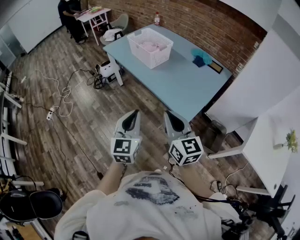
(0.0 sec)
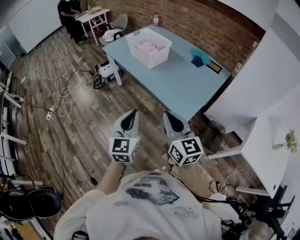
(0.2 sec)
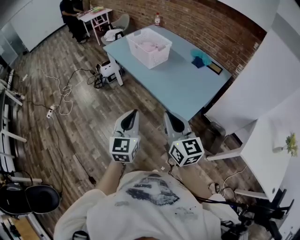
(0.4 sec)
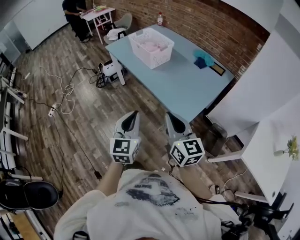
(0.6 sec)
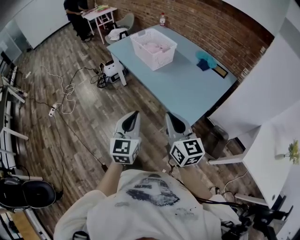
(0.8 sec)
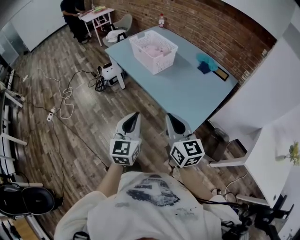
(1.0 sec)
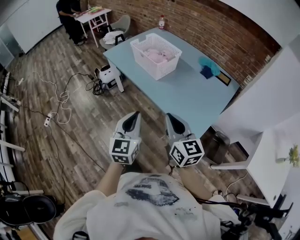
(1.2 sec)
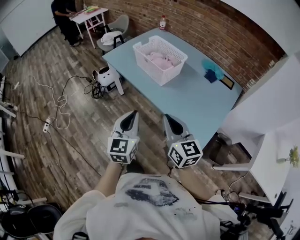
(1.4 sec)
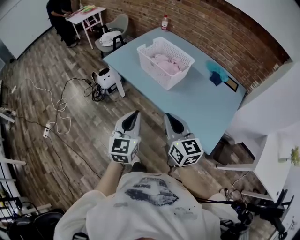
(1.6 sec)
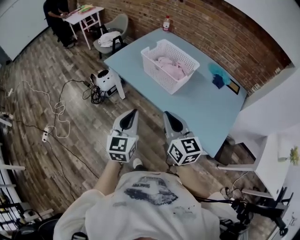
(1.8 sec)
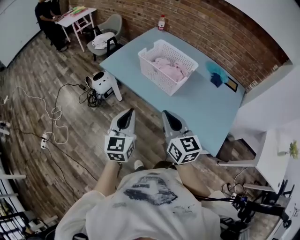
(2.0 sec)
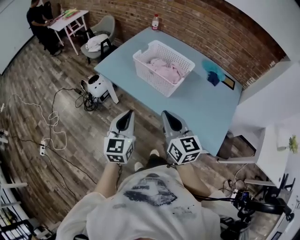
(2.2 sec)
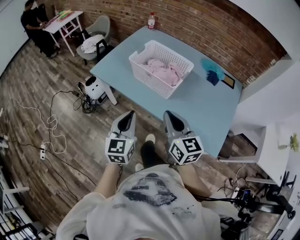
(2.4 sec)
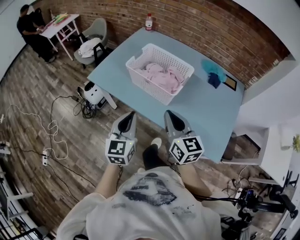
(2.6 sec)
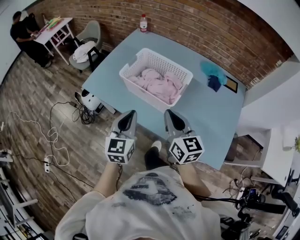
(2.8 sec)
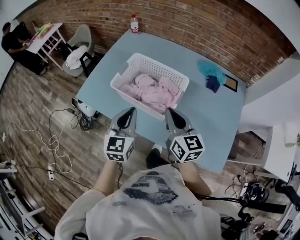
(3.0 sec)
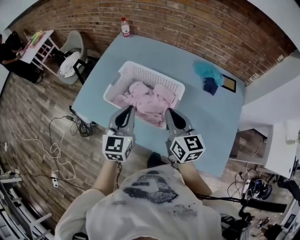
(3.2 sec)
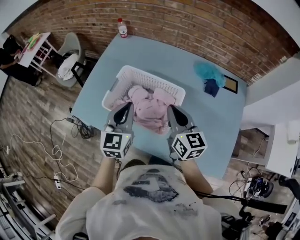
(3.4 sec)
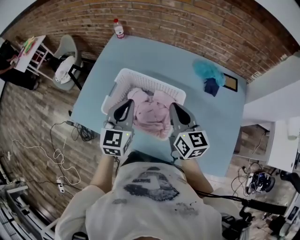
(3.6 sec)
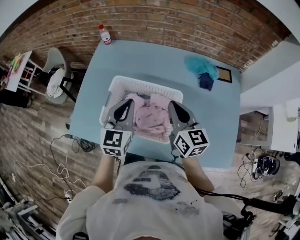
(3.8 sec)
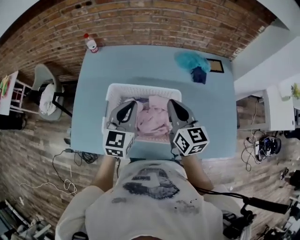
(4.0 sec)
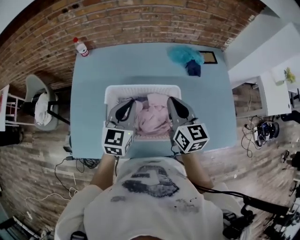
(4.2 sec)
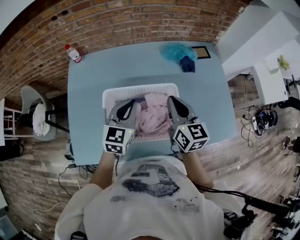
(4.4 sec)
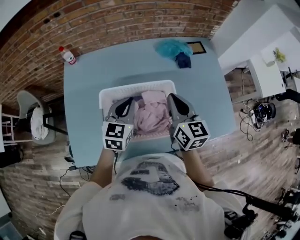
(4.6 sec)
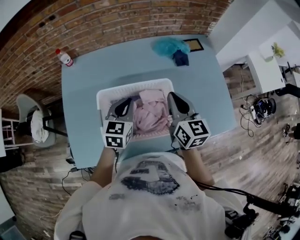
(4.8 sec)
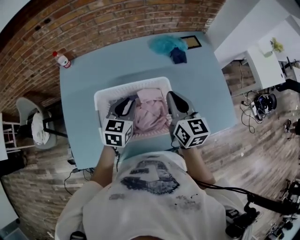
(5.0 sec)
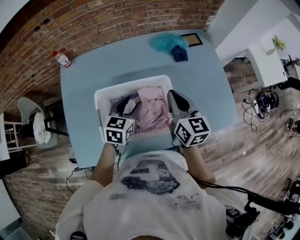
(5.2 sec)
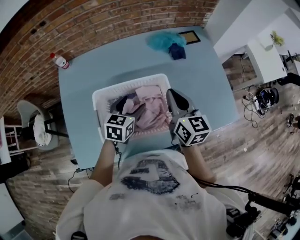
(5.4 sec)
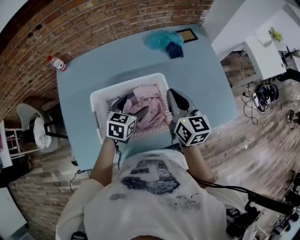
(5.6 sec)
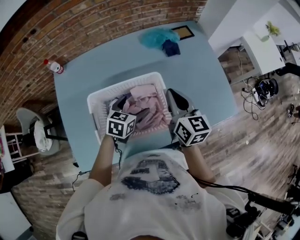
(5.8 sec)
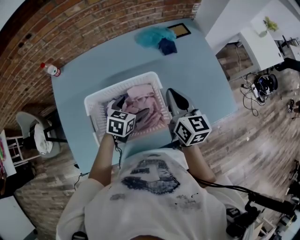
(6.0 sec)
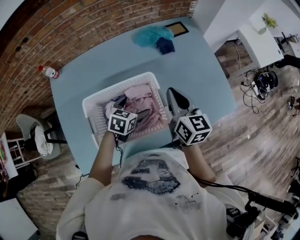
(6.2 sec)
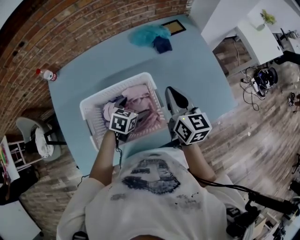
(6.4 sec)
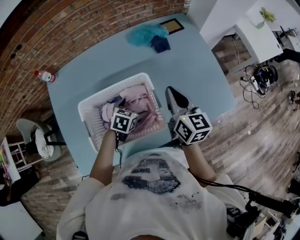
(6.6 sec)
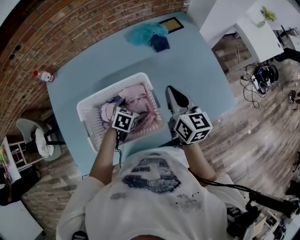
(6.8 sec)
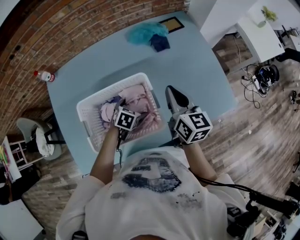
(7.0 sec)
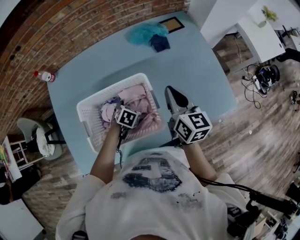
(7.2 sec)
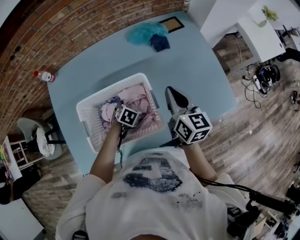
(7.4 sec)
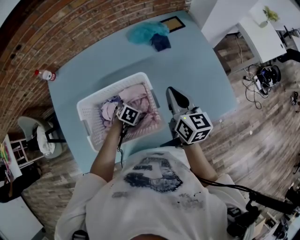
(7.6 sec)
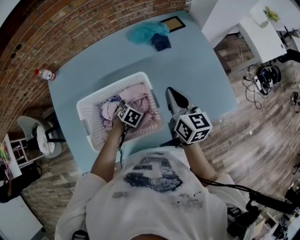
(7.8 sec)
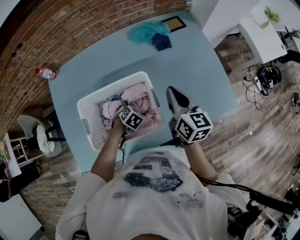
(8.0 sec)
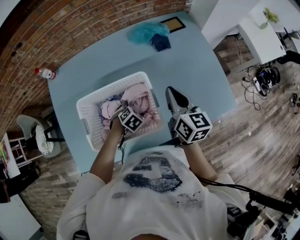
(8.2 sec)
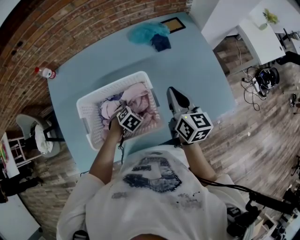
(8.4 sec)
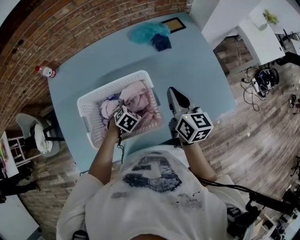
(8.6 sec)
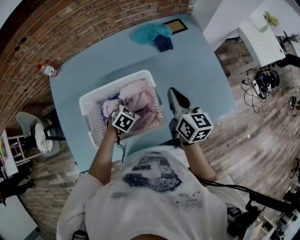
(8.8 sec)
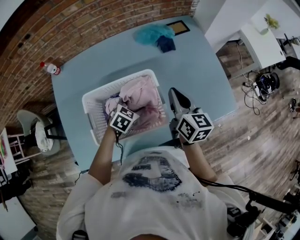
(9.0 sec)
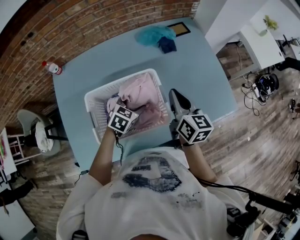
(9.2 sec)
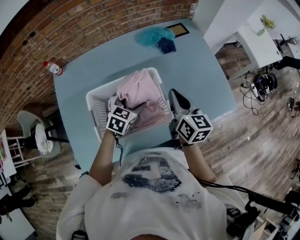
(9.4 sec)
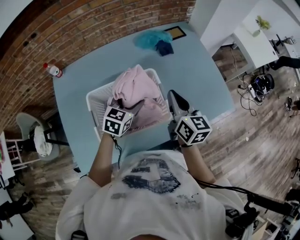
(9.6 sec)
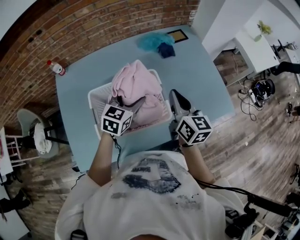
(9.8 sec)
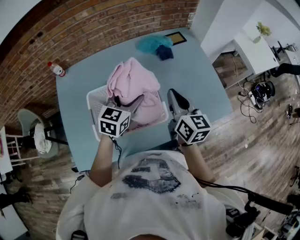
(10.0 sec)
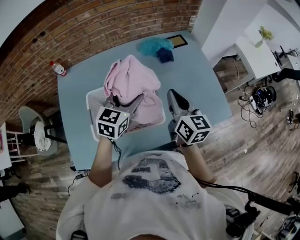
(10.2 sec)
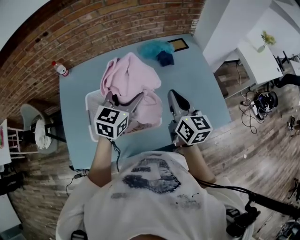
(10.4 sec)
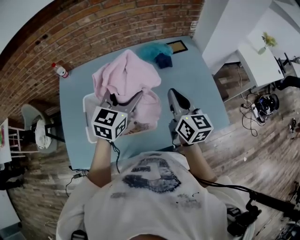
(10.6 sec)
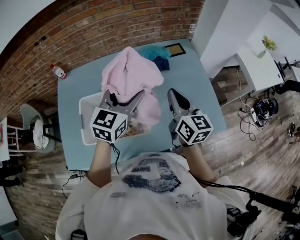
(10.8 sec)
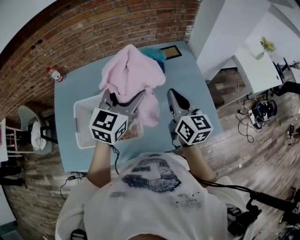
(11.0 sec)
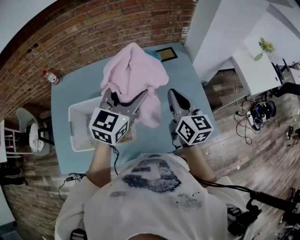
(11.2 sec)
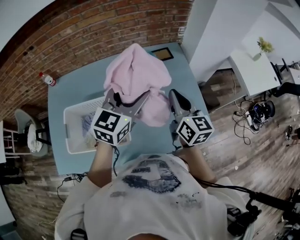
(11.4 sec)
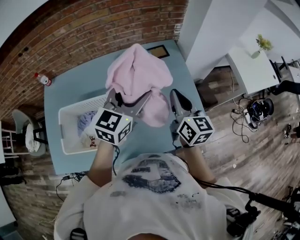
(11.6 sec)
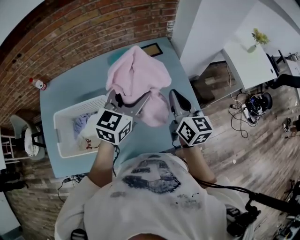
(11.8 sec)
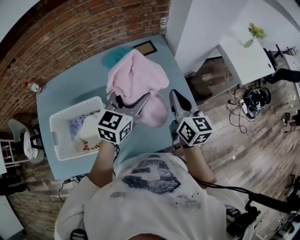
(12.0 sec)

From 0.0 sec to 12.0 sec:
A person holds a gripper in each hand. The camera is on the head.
From 0.0 sec to 1.6 sec: Both grippers move forward and to the left, roughly 30 cm.
From 1.6 sec to 3.0 sec: Both grippers travel together forward, roughly 35 cm.
From 3.0 sec to 4.4 sec: The right gripper shifts by some 15 cm, and turns by about 40 degrees. Meanwhile the left gripper changes place by approximately 25 cm, and swivels some 40 degrees.
From 4.4 sec to 6.0 sec: The right gripper is displaced to the right by about 10 cm; the left gripper moves downward and to the right, approximately 15 cm, turns by some 30 degrees, and opens.
From 6.0 sec to 7.6 sec: The right gripper shifts by roughly 5 cm, while the left gripper is displaced downward by roughly 10 cm, and rotates some 30 degrees.
From 7.6 sec to 9.0 sec: The left gripper heads upward, covering some 10 cm, and closes up.
From 9.0 sec to 10.4 sec: The right gripper shifts roughly 5 cm upward. Meanwhile the left gripper moves upward, some 20 cm, and tips its fingers upward by roughly 30 degrees.
From 10.4 sec to 12.0 sec: Both grippers travel together to the right and forward, some 25 cm.

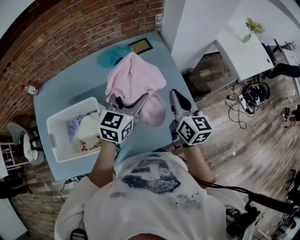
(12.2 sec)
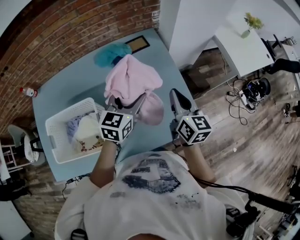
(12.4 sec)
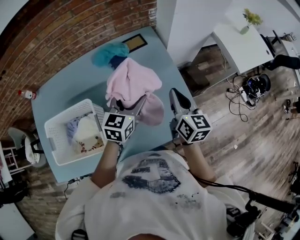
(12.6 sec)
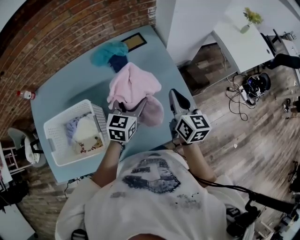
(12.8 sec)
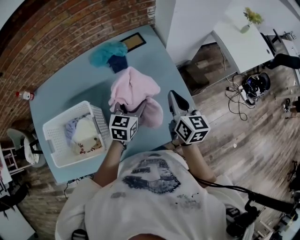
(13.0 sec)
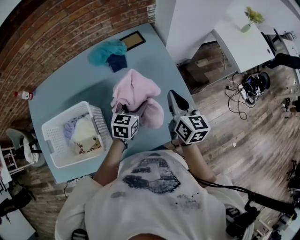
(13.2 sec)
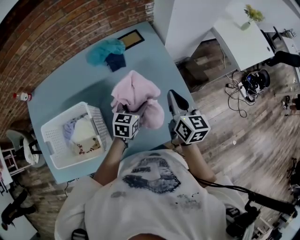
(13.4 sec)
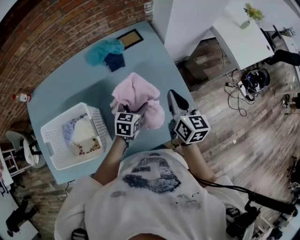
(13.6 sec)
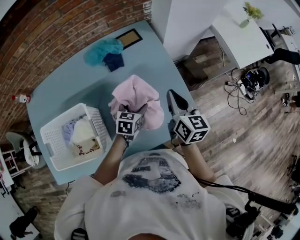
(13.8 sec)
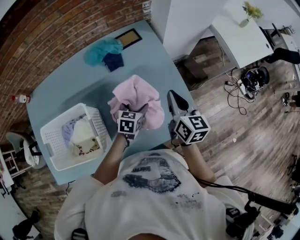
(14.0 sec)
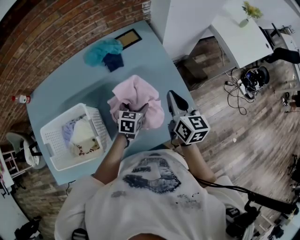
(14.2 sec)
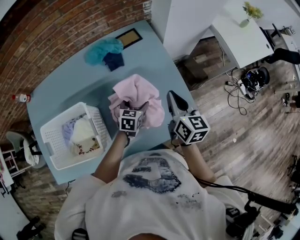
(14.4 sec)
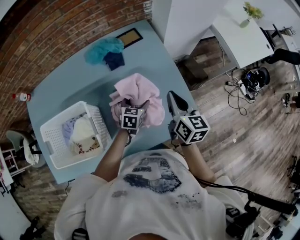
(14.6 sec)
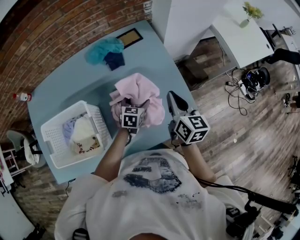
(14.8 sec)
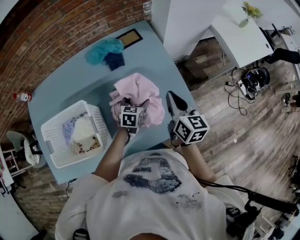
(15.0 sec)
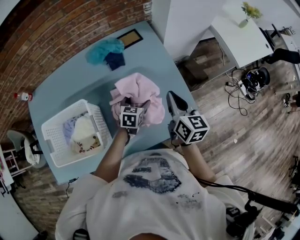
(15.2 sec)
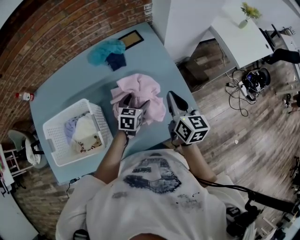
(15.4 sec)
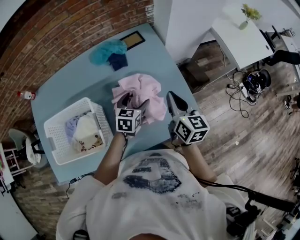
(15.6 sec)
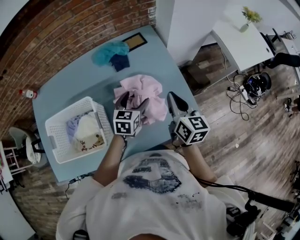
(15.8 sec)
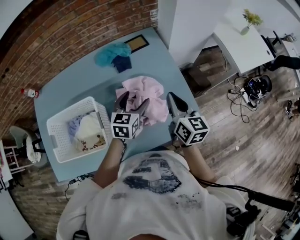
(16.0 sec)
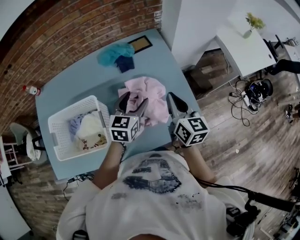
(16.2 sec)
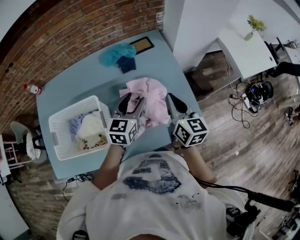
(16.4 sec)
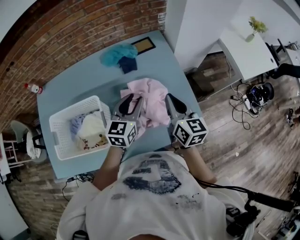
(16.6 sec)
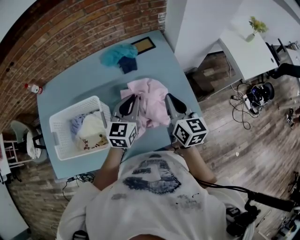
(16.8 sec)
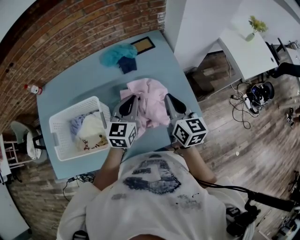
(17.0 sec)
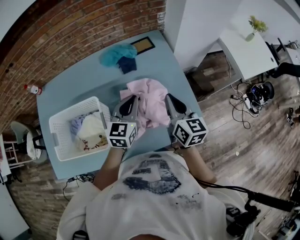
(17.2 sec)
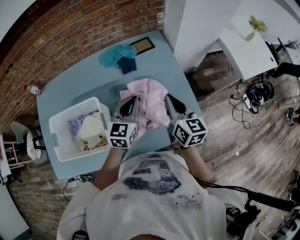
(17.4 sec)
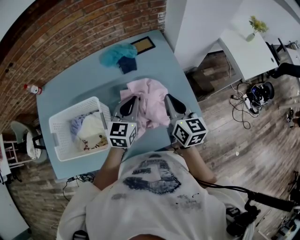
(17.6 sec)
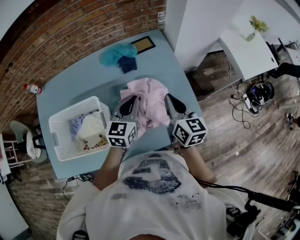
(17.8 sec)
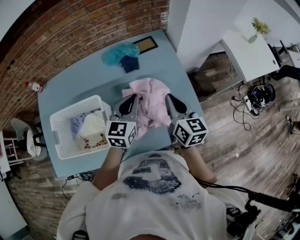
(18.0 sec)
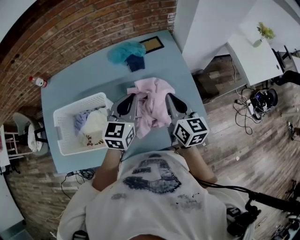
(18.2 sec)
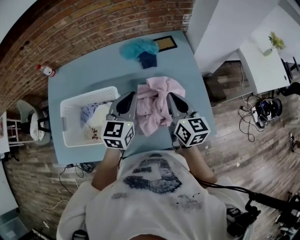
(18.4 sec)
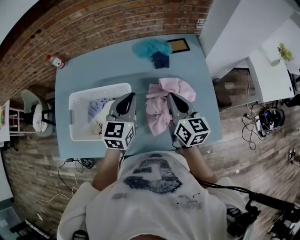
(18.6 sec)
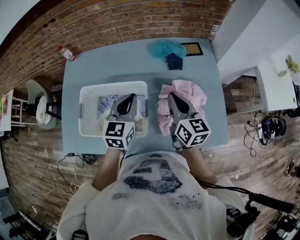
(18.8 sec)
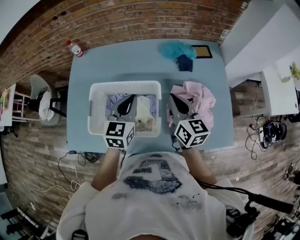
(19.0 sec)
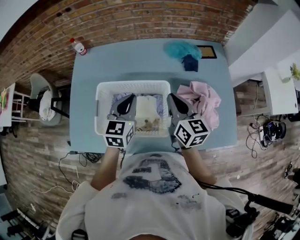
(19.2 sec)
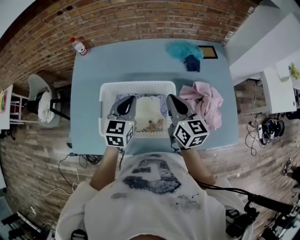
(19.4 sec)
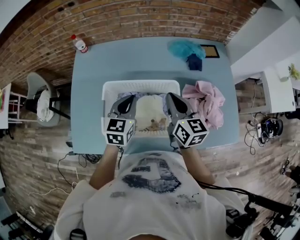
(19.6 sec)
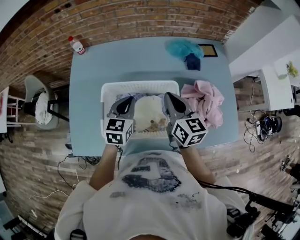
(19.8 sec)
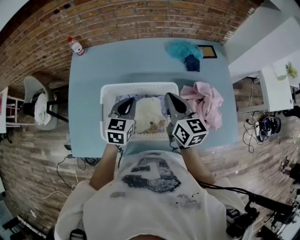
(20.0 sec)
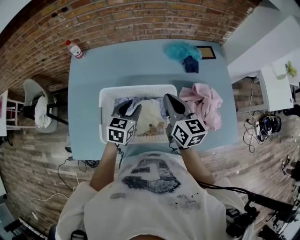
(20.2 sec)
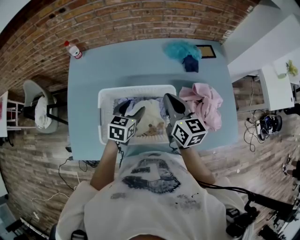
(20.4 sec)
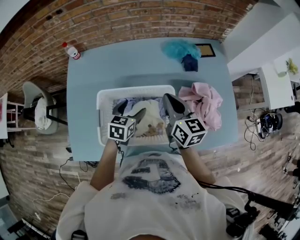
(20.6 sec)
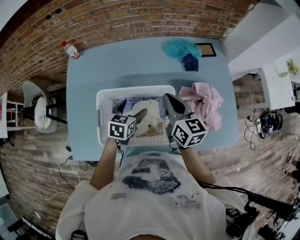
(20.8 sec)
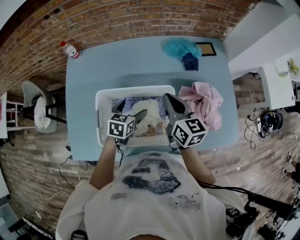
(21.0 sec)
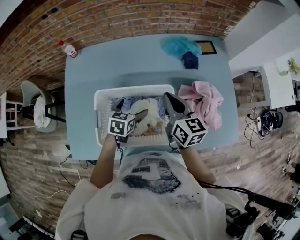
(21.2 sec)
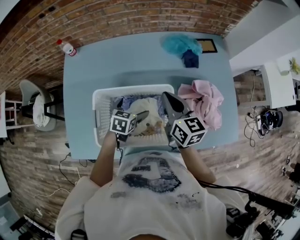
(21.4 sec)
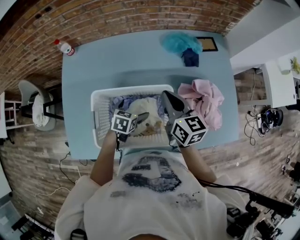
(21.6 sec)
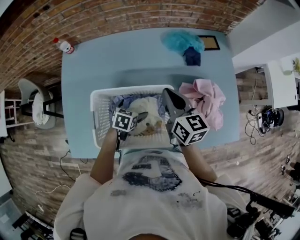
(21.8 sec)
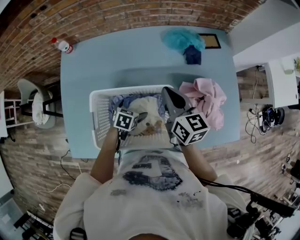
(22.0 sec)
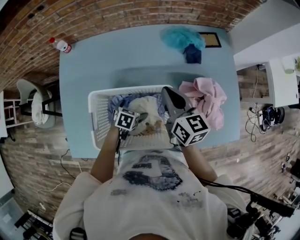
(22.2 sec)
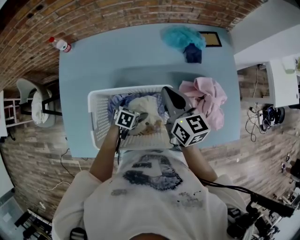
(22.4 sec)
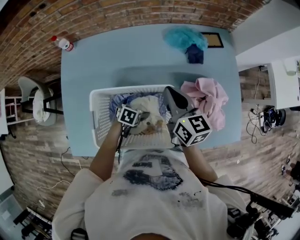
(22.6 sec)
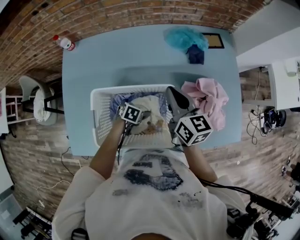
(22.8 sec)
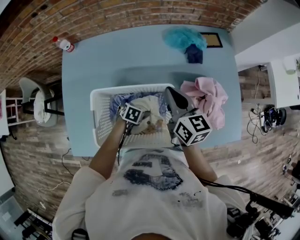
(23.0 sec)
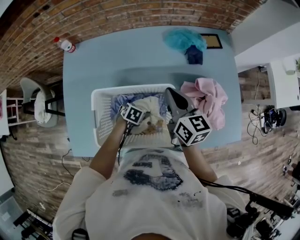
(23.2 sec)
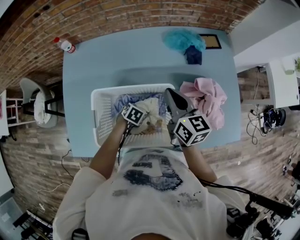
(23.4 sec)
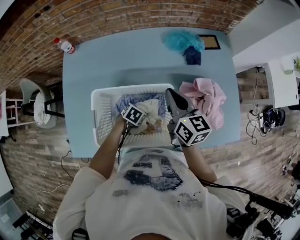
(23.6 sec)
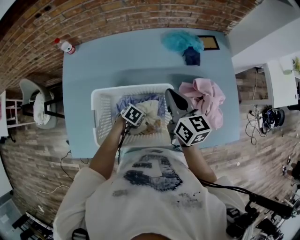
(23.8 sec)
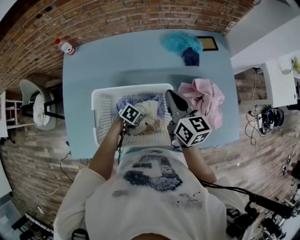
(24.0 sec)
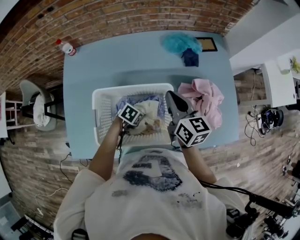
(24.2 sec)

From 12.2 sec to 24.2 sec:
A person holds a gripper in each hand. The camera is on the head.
From 12.2 sec to 13.8 sec: The left gripper is displaced downward by about 20 cm, and swivels some 30 degrees. Meanwhile the right gripper heads downward, covering some 5 cm.
From 13.8 sec to 15.2 sec: There are only small adjustments of the grippers.
From 15.2 sec to 16.6 sec: The right gripper shifts by roughly 5 cm, while the left gripper travels upward by roughly 20 cm, swivels roughly 30 degrees, and closes its fingers.
From 16.6 sec to 18.2 sec: The left gripper moves some 5 cm.
From 18.2 sec to 19.8 sec: The grippers both shift to the left by approximately 35 cm.
From 19.8 sec to 21.2 sec: The left gripper travels downward by roughly 10 cm, swivels approximately 20 degrees, and opens.
From 21.2 sec to 22.6 sec: The left gripper moves downward, roughly 15 cm, and swivels about 20 degrees.
From 22.6 sec to 24.2 sec: The left gripper closes.
